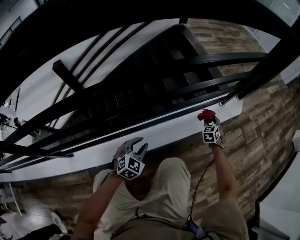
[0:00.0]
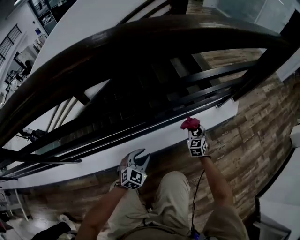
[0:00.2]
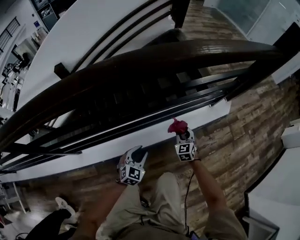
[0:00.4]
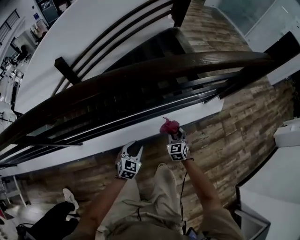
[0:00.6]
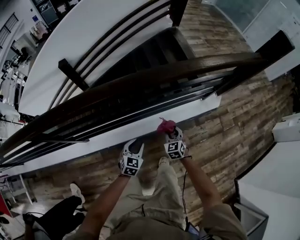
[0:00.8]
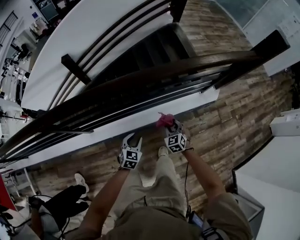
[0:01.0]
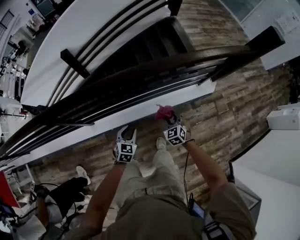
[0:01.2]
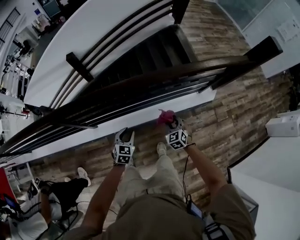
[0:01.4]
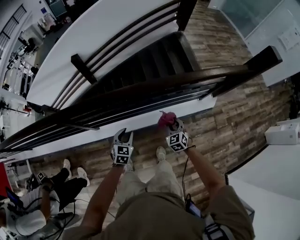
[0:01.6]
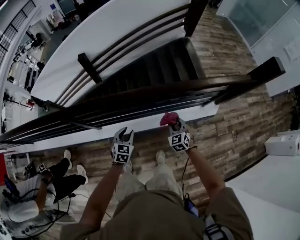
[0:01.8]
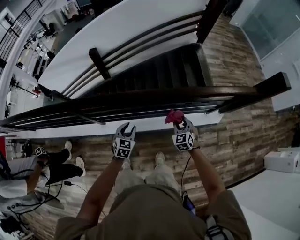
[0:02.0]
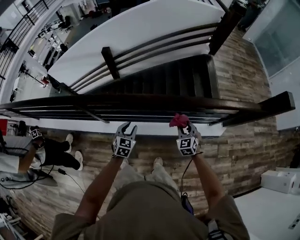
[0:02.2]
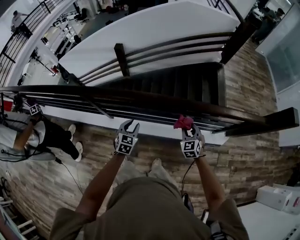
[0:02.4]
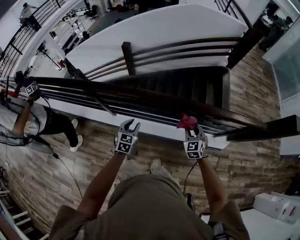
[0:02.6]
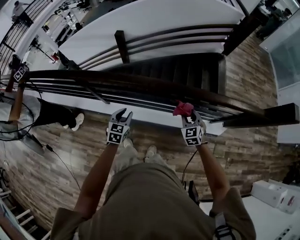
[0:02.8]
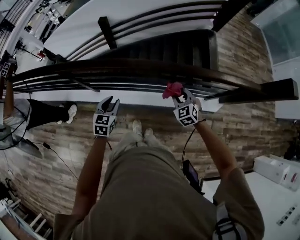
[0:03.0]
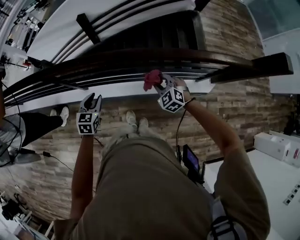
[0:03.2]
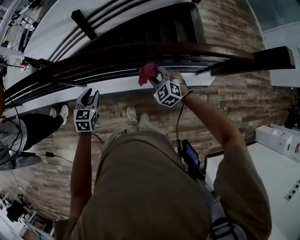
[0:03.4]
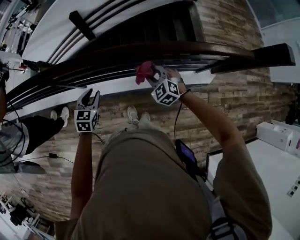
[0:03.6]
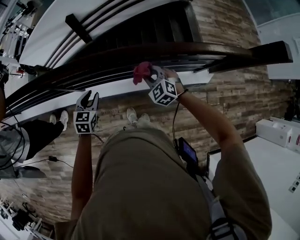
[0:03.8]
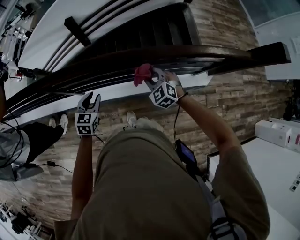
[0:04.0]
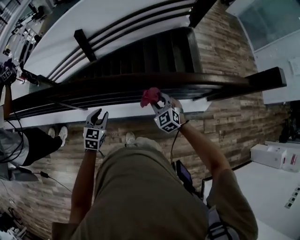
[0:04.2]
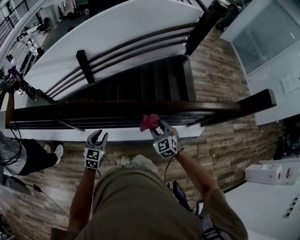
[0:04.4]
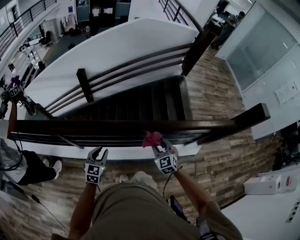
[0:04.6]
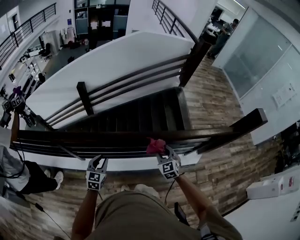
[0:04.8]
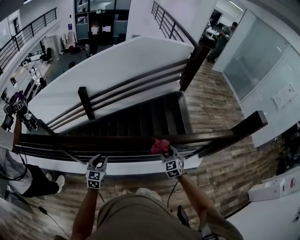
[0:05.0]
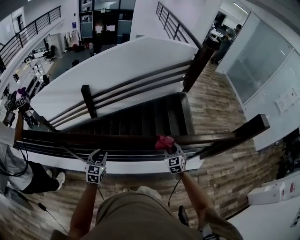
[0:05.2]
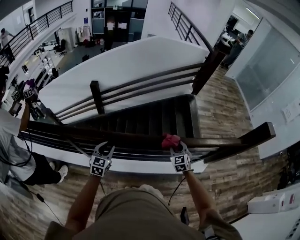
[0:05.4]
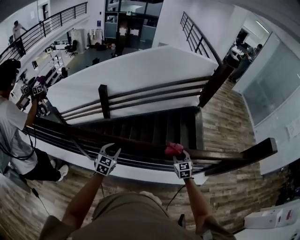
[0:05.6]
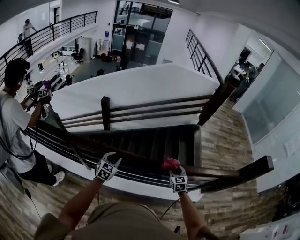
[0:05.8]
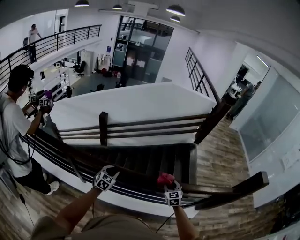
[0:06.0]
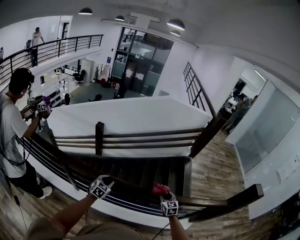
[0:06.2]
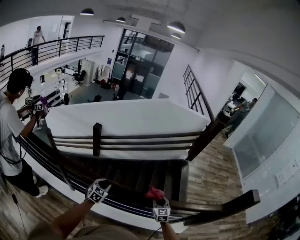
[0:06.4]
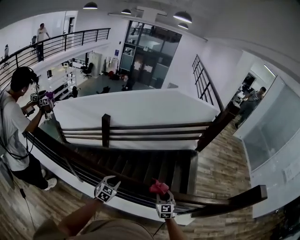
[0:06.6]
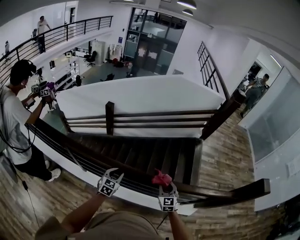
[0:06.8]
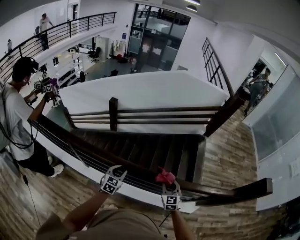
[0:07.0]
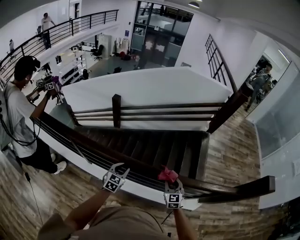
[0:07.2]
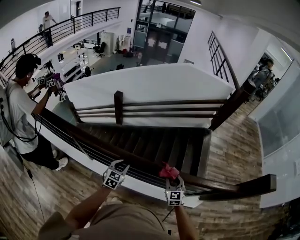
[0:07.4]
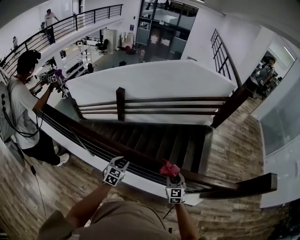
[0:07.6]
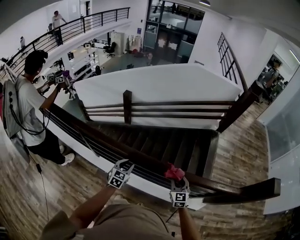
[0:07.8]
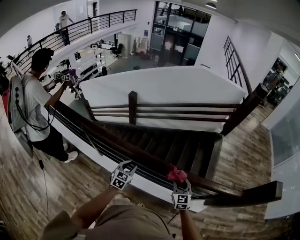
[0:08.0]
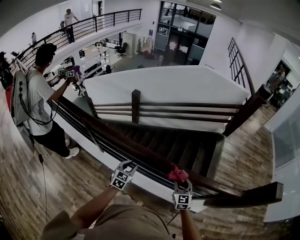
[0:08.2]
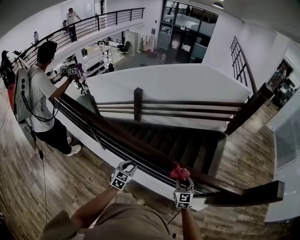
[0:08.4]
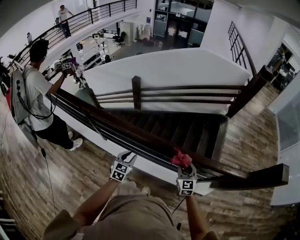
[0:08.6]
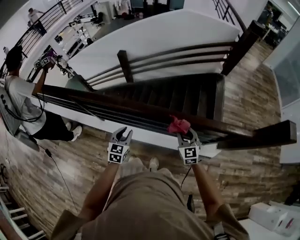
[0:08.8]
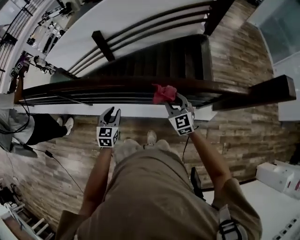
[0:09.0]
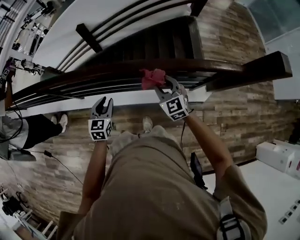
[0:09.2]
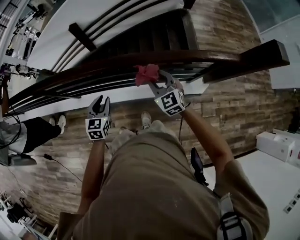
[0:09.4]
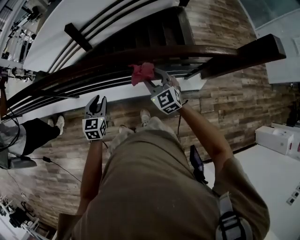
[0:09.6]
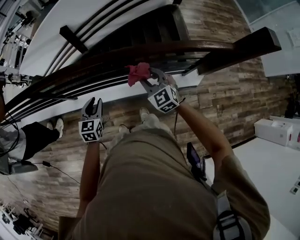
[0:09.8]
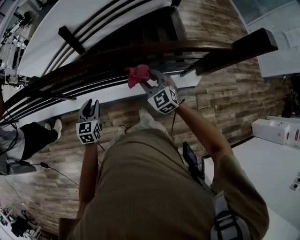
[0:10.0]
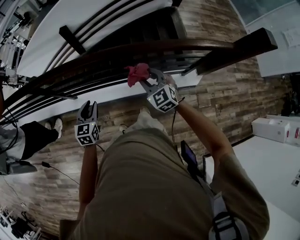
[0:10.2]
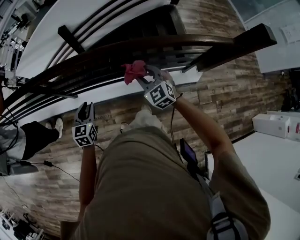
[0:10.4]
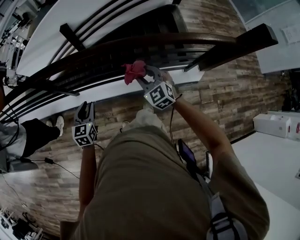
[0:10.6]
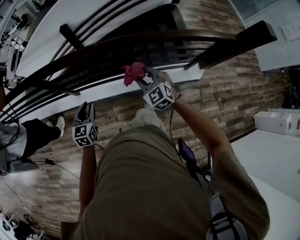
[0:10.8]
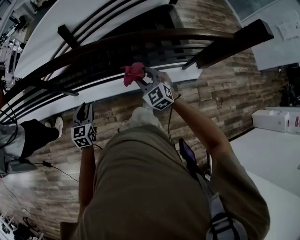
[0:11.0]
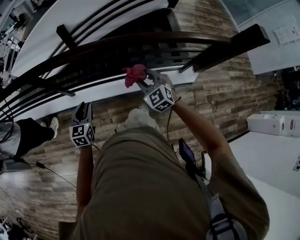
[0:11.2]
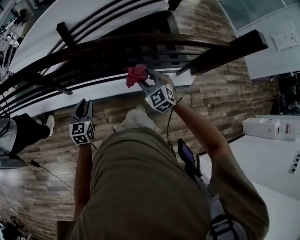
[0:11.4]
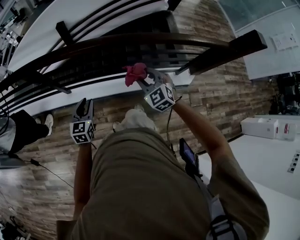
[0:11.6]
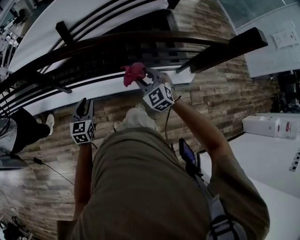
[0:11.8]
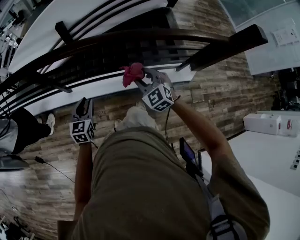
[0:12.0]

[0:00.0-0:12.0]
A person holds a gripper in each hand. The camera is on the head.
0:00.0 to 0:01.6: Both grippers travel together upward, approximately 60 cm. The left gripper turns by roughly 30 degrees. The right gripper rotates some 30 degrees.
0:01.6 to 0:03.0: The right gripper heads upward and forward, covering approximately 10 cm, and turns by approximately 20 degrees. Meanwhile the left gripper is displaced upward by roughly 10 cm.
0:03.0 to 0:04.4: The left gripper moves forward, roughly 5 cm. The right gripper heads to the left, covering some 5 cm.
0:04.4 to 0:06.0: The right gripper is displaced forward and to the right by approximately 15 cm, while the left gripper shifts roughly 15 cm forward.
0:06.0 to 0:07.6: The left gripper goes roughly 15 cm to the right; the right gripper travels to the right by approximately 5 cm.
0:07.6 to 0:09.0: The two grippers go roughly 15 cm backward and to the right.
0:09.0 to 0:10.4: The left gripper goes roughly 15 cm to the left and backward. The right gripper moves to the left, about 15 cm.
0:10.4 to 0:12.0: Both grippers travel together to the left and backward, approximately 15 cm.

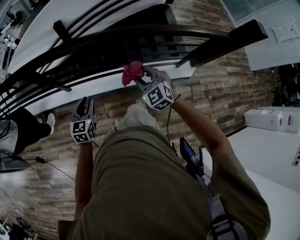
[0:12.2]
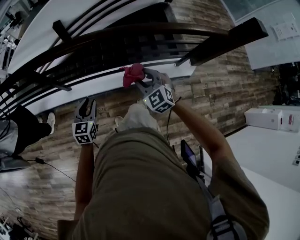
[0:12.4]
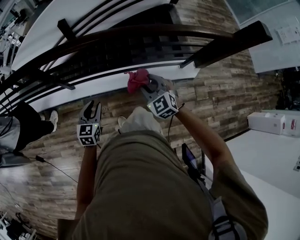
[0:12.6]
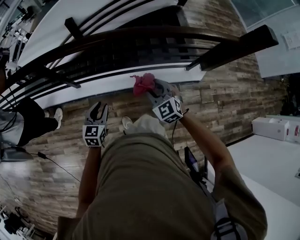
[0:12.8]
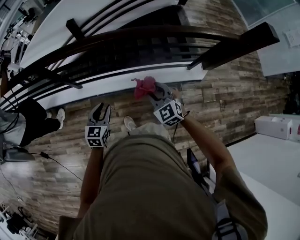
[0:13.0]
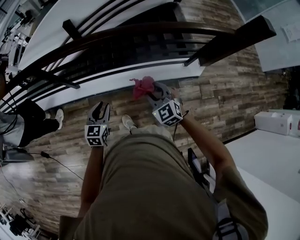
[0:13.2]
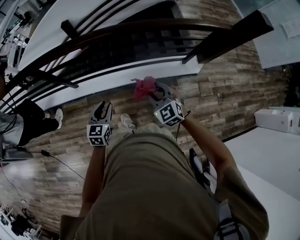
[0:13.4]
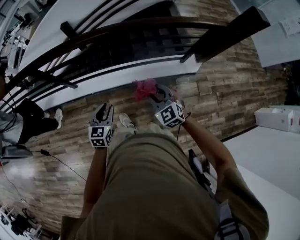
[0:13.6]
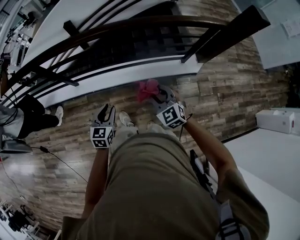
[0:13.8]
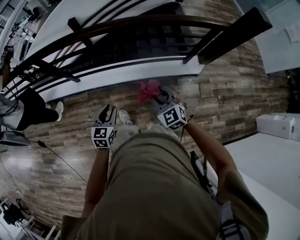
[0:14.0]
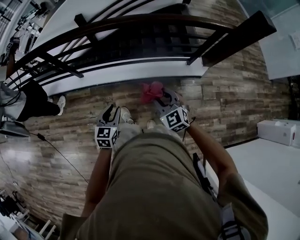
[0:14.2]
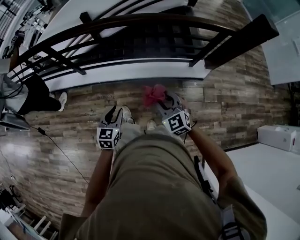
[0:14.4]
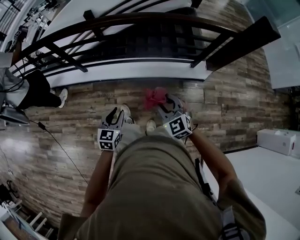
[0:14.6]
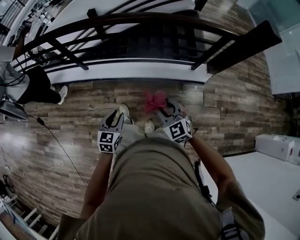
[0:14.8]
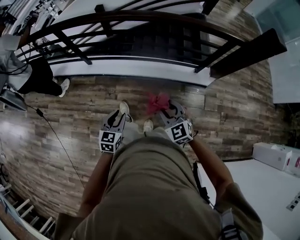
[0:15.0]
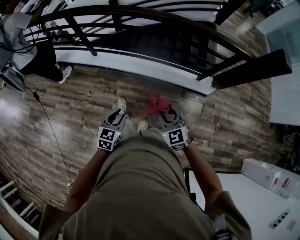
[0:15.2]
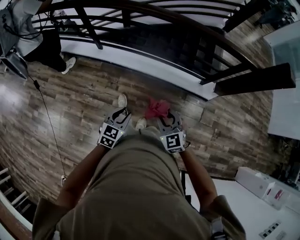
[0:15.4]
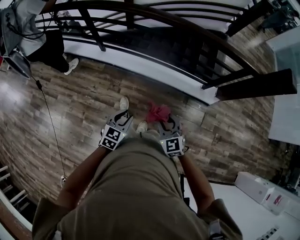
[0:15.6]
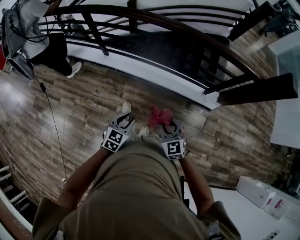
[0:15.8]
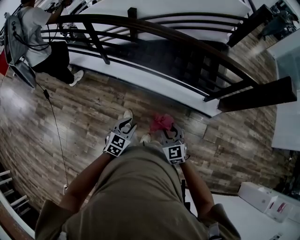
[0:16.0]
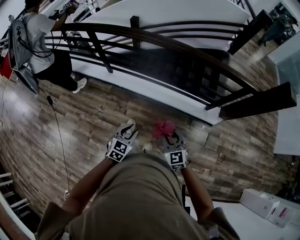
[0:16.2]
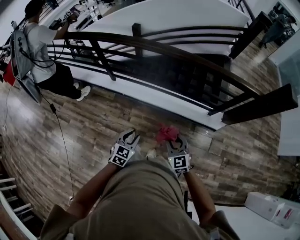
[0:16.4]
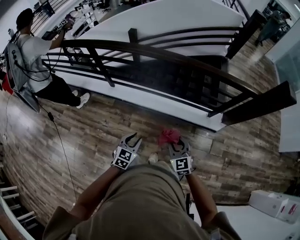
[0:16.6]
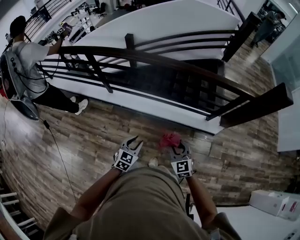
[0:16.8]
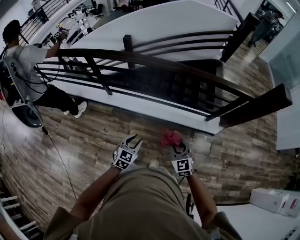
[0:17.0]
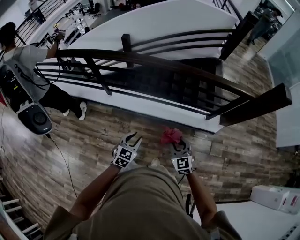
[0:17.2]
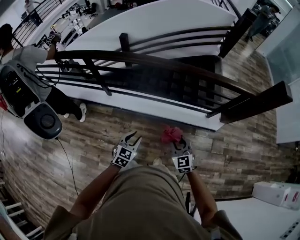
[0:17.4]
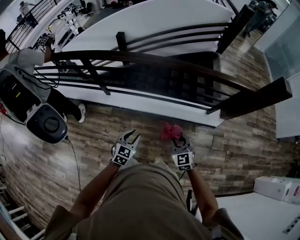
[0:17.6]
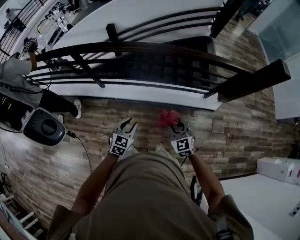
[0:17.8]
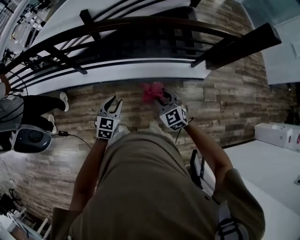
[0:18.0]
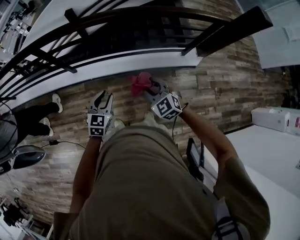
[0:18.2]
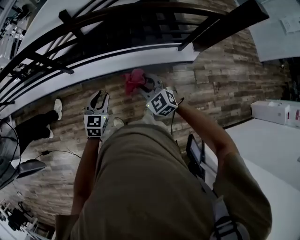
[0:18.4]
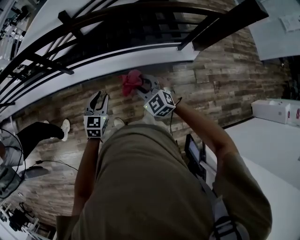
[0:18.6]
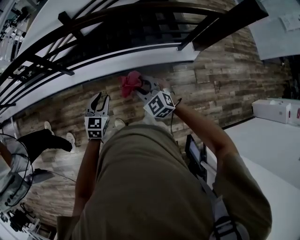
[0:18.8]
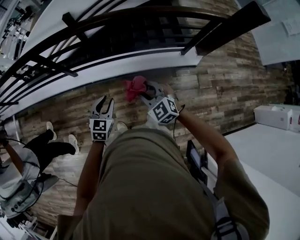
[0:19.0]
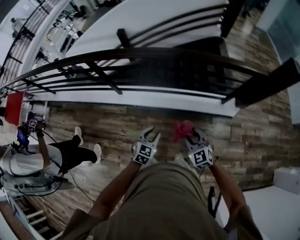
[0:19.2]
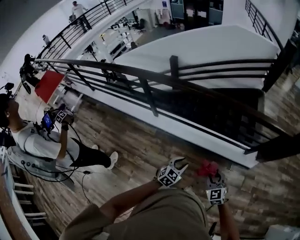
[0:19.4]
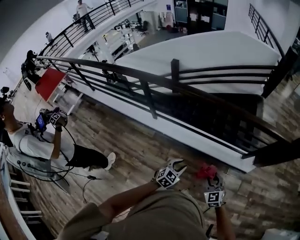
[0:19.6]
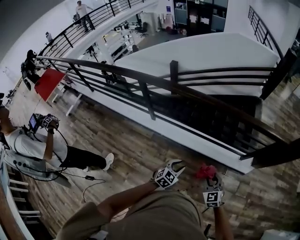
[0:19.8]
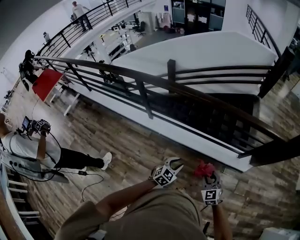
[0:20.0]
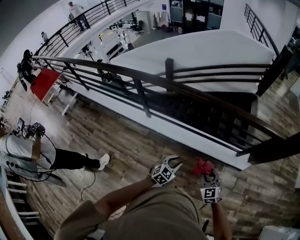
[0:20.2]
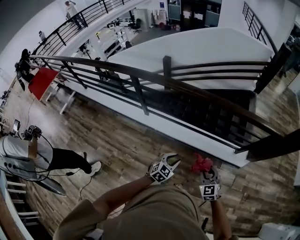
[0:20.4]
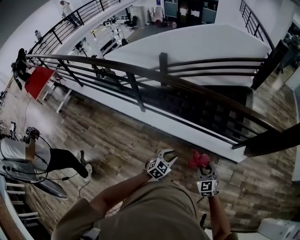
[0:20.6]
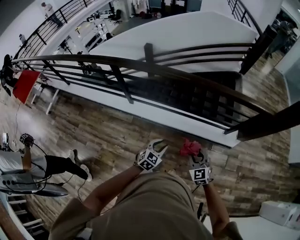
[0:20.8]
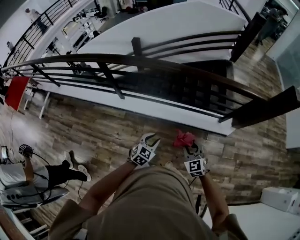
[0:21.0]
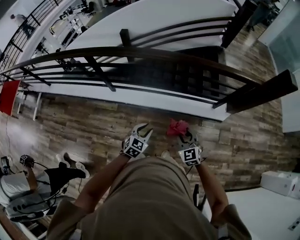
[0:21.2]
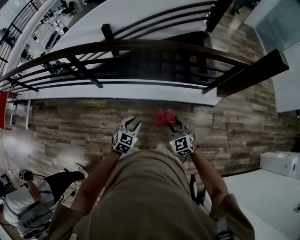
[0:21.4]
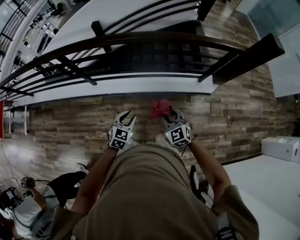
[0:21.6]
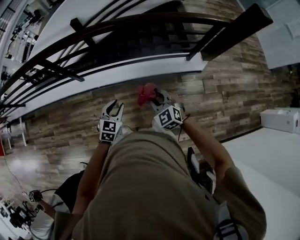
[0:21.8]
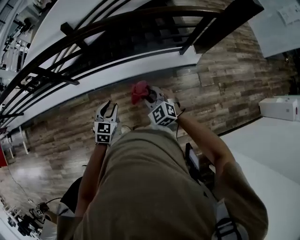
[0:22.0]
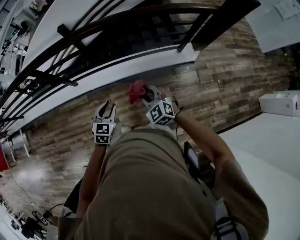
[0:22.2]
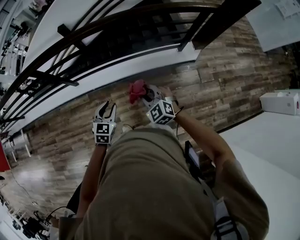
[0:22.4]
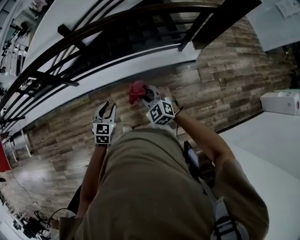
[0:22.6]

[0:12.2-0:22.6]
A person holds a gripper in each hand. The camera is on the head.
0:12.2 to 0:13.6: The left gripper moves to the right and backward, about 20 cm. The right gripper heads backward and to the right, covering some 20 cm.
0:13.6 to 0:15.2: Both grippers move backward, approximately 20 cm.
0:15.2 to 0:16.6: The grippers both shift forward by some 5 cm.
0:16.6 to 0:18.2: The grippers both shift to the left and forward by about 15 cm.
0:18.2 to 0:19.6: The right gripper travels upward by approximately 5 cm.
0:19.6 to 0:21.2: The left gripper ends up roughly 5 cm from where it was. Meanwhile the right gripper ends up some 5 cm from where it was.
0:21.2 to 0:22.6: The right gripper moves approximately 5 cm.

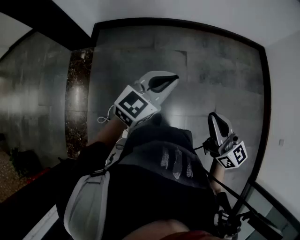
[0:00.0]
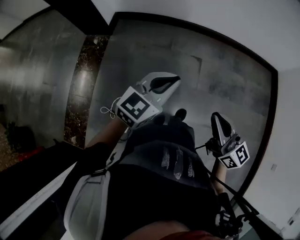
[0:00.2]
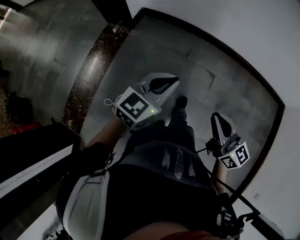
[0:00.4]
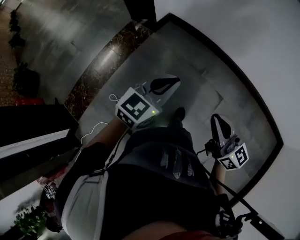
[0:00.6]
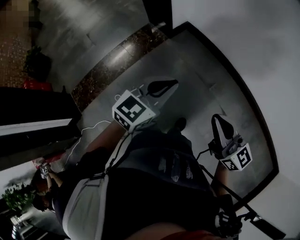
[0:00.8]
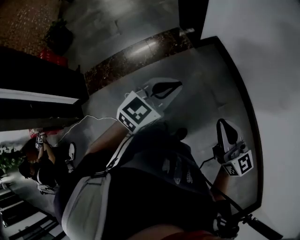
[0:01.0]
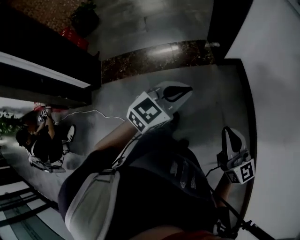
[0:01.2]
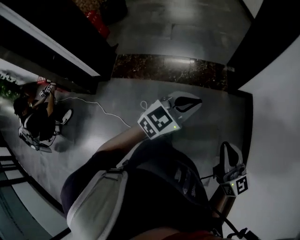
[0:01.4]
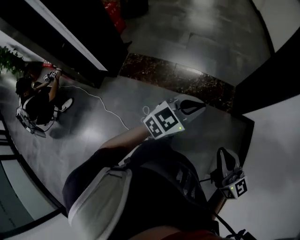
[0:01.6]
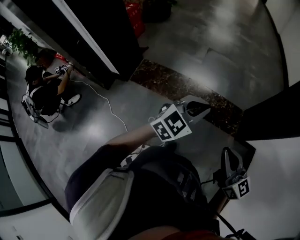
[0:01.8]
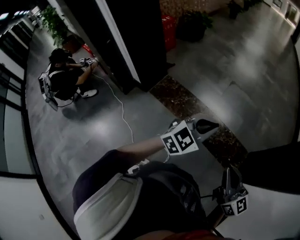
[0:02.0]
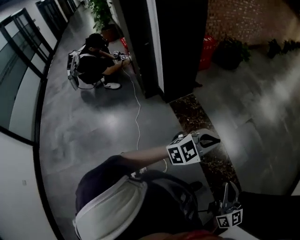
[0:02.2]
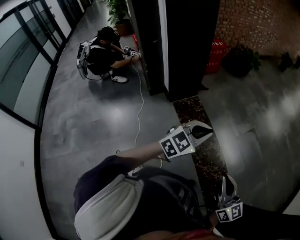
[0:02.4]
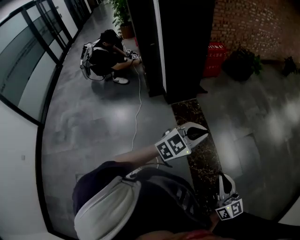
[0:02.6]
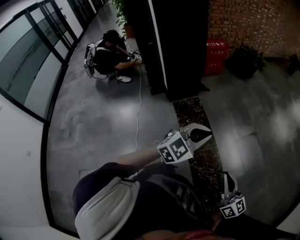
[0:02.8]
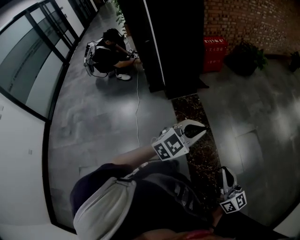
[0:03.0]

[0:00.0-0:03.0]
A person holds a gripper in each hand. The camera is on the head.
0:00.0 to 0:01.6: The pair of grippers is taken roughly 60 cm. The right gripper turns by roughly 90 degrees. Meanwhile the left gripper rotates some 80 degrees.
0:01.6 to 0:03.0: Both grippers are carried about 50 cm. The left gripper rotates approximately 60 degrees. Meanwhile the right gripper swivels roughly 50 degrees.
